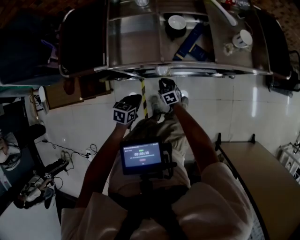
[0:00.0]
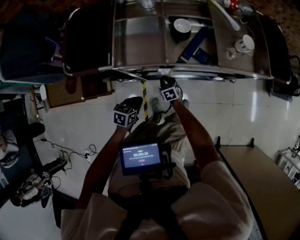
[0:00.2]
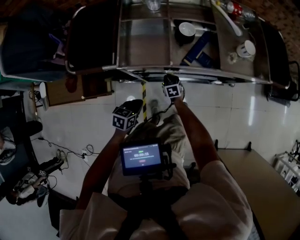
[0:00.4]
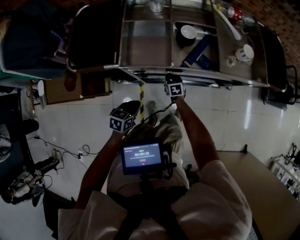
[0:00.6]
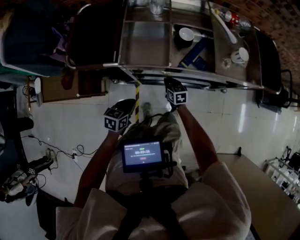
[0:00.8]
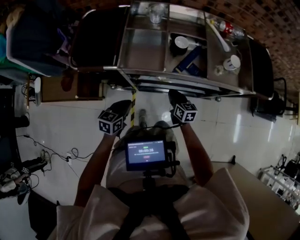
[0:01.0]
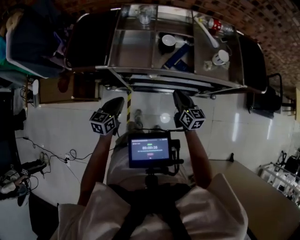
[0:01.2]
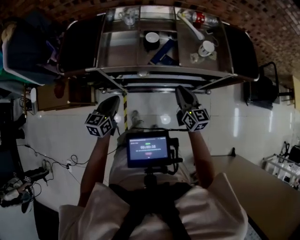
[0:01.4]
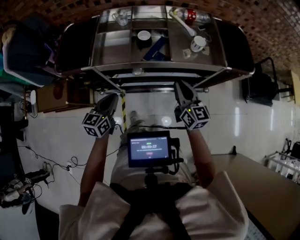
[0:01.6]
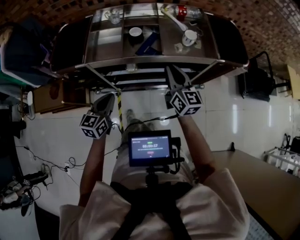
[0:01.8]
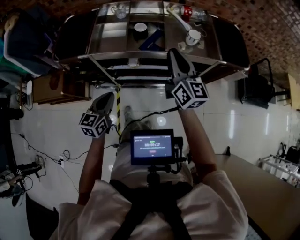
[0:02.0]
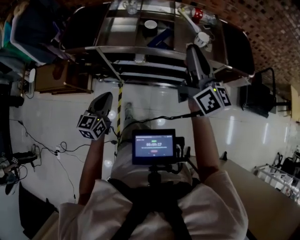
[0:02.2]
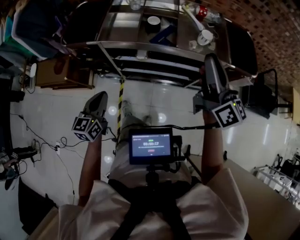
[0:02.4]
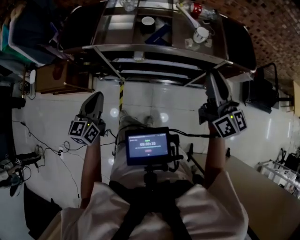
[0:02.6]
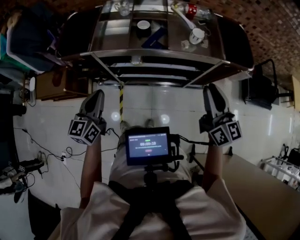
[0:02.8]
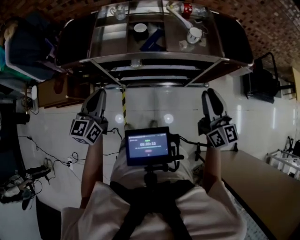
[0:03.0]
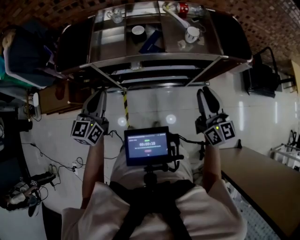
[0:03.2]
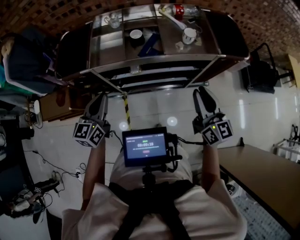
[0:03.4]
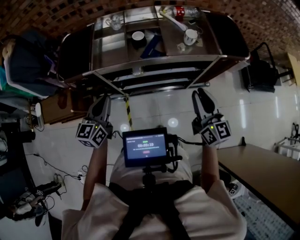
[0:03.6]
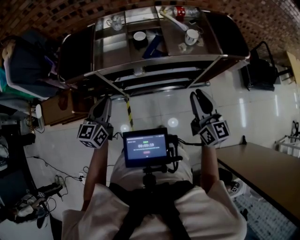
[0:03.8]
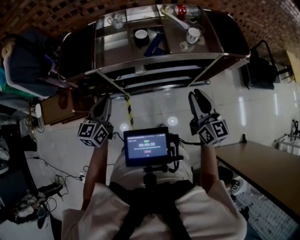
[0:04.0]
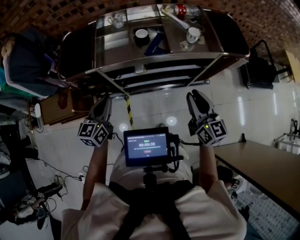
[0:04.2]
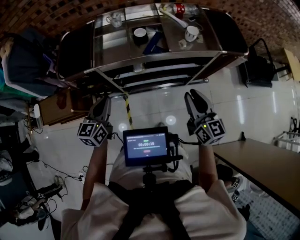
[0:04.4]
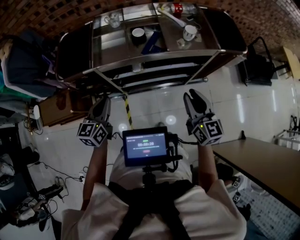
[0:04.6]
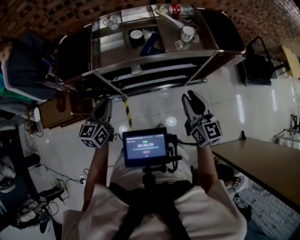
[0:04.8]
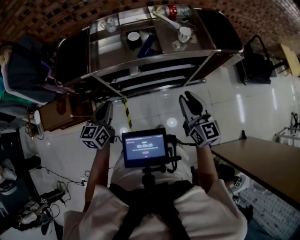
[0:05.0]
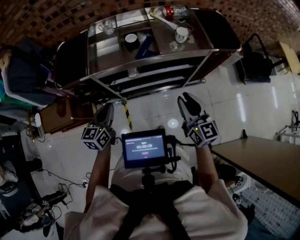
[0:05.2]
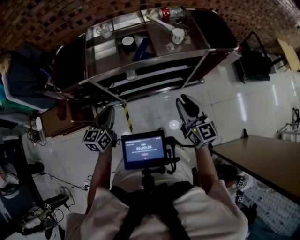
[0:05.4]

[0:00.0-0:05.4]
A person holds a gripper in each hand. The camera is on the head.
0:00.0 to 0:01.4: The left gripper is displaced upward by about 20 cm, and changes its angle by approximately 30 degrees. Meanwhile the right gripper travels upward and to the right by roughly 40 cm, and tips its fingers upward by some 40 degrees.
0:01.4 to 0:02.8: The left gripper goes approximately 15 cm upward and backward, while the right gripper heads upward, to the right and backward, covering about 25 cm.
0:02.8 to 0:04.0: The left gripper ends up approximately 5 cm from where it was; the right gripper travels to the left and downward by roughly 10 cm.
0:04.0 to 0:05.4: There are only small adjustments of the grippers.

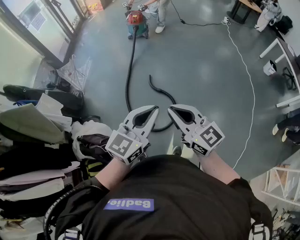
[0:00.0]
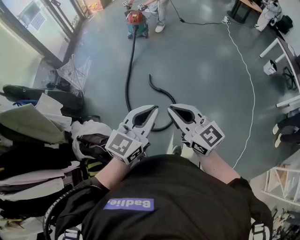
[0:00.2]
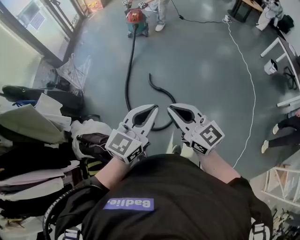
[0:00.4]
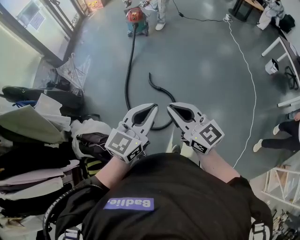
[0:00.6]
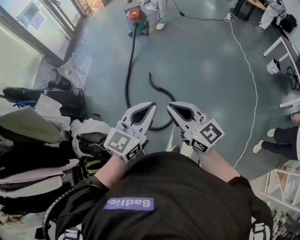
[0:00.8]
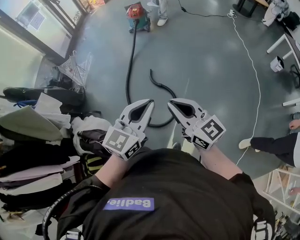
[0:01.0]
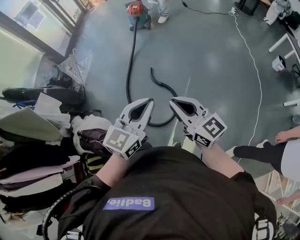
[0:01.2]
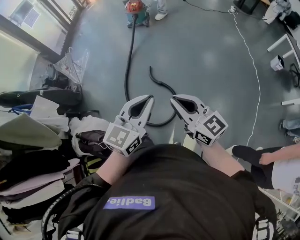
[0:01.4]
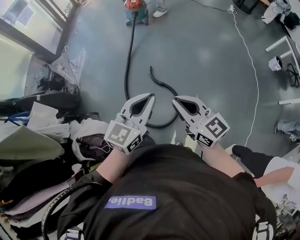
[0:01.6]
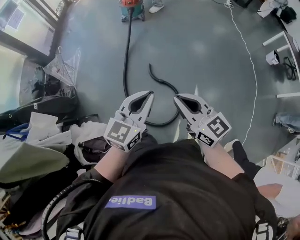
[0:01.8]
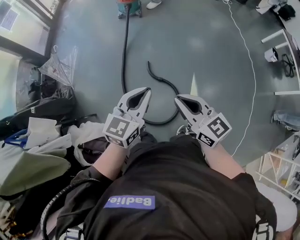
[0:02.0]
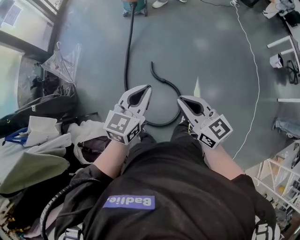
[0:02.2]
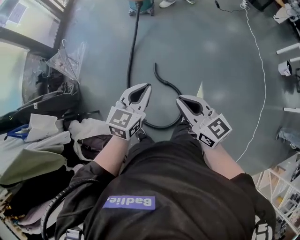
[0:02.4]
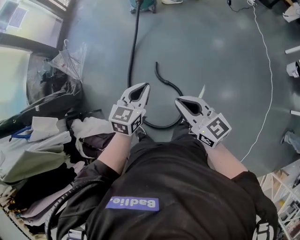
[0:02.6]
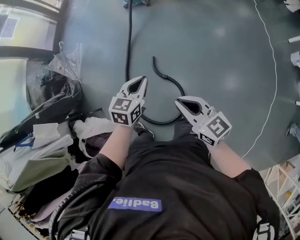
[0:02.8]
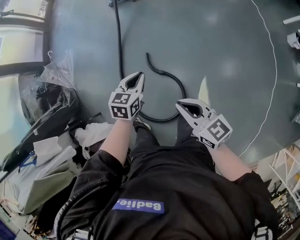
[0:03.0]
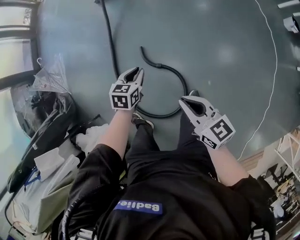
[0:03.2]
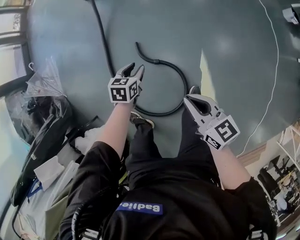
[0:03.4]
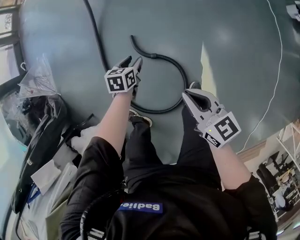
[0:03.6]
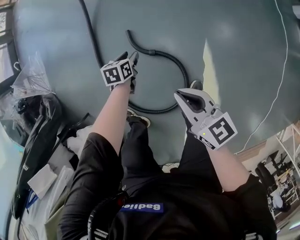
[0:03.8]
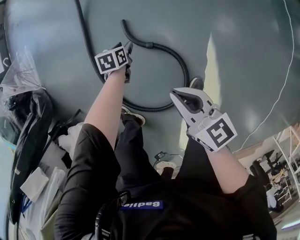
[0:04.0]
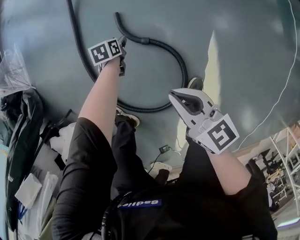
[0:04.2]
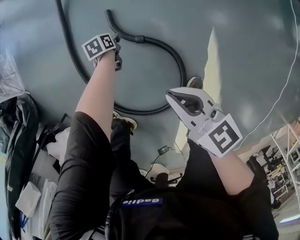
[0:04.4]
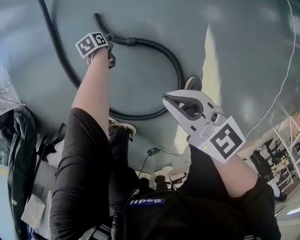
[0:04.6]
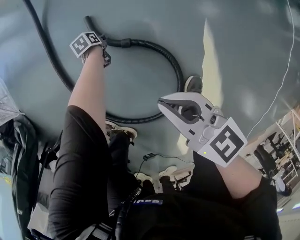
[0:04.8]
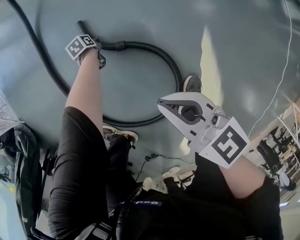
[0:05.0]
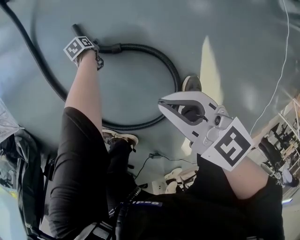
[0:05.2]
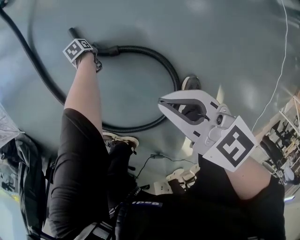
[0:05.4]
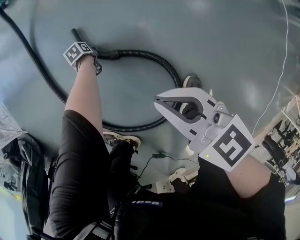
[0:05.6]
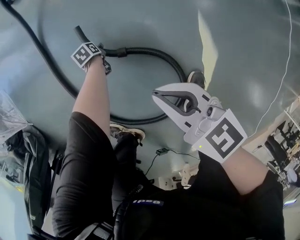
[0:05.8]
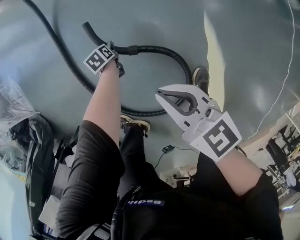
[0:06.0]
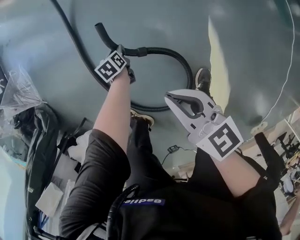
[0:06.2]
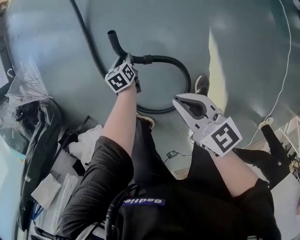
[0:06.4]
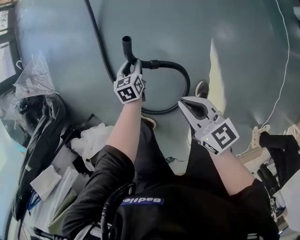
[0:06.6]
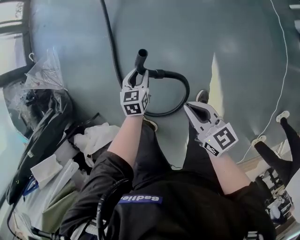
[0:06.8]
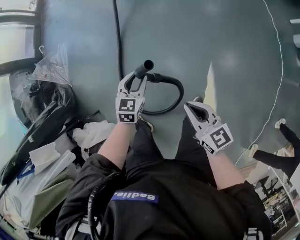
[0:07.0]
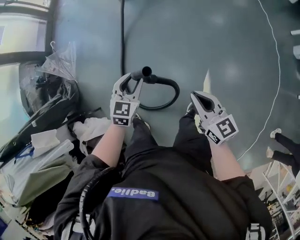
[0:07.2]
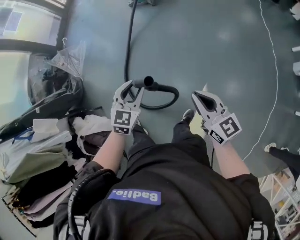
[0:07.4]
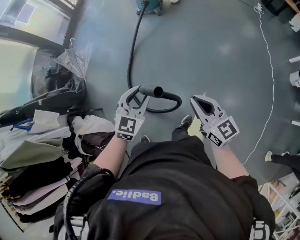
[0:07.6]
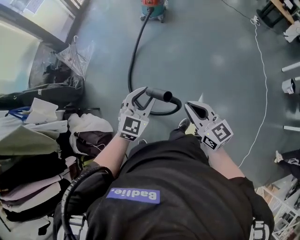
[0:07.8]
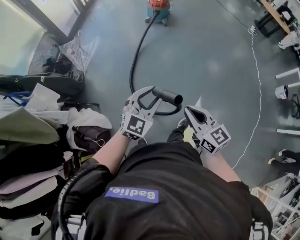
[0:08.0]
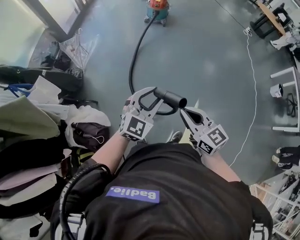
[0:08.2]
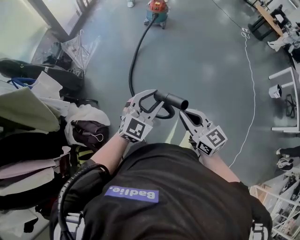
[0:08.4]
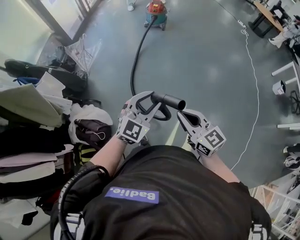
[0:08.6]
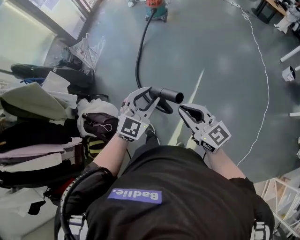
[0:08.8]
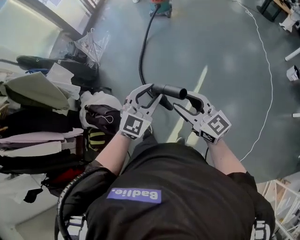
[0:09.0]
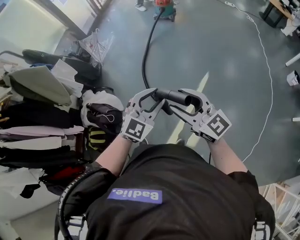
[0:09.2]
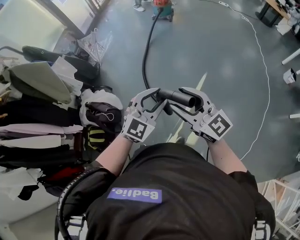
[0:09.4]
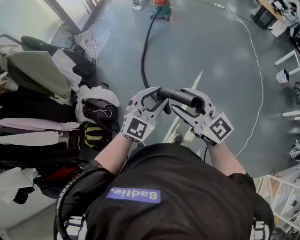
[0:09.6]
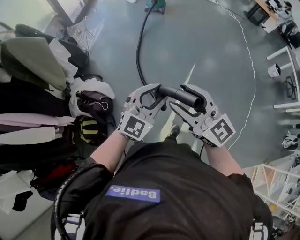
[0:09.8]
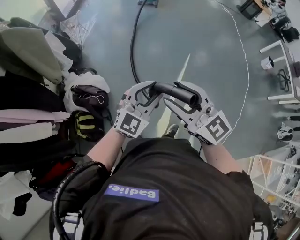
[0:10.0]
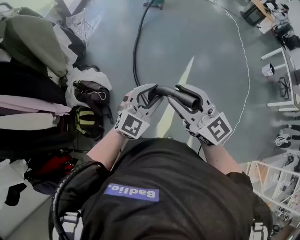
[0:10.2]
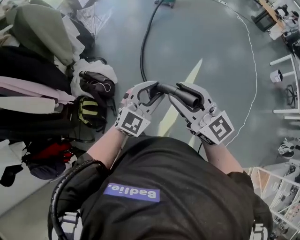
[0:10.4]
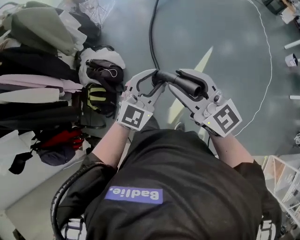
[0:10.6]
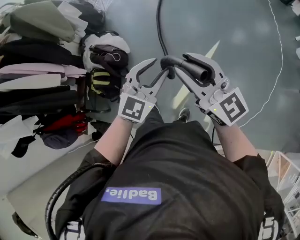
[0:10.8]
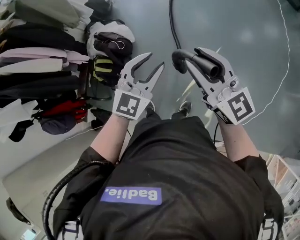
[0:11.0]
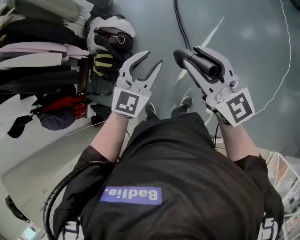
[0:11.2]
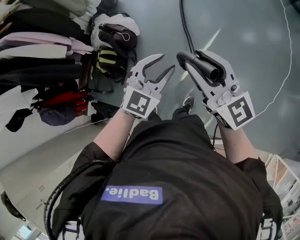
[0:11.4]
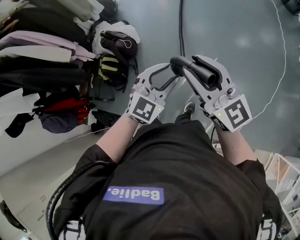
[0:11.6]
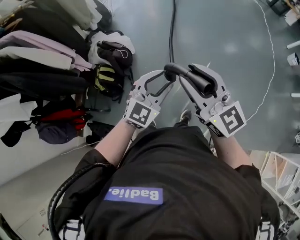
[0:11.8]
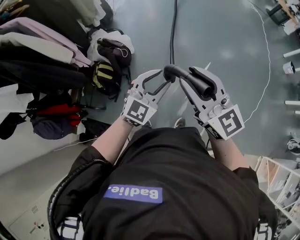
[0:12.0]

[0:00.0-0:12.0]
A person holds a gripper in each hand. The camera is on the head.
0:00.0 to 0:01.6: The two grippers go roughly 15 cm forward.
0:01.6 to 0:03.0: The right gripper moves forward, downward and to the right, about 30 cm. Meanwhile the left gripper shifts approximately 40 cm forward and downward, and tips its fingers downward by about 30 degrees.
0:03.0 to 0:04.4: The right gripper goes about 40 cm downward; the left gripper moves downward, approximately 70 cm, turns by about 40 degrees, and opens.
0:04.4 to 0:06.0: The left gripper travels downward and back again, roughly 15 cm each way.
0:06.0 to 0:07.6: The right gripper shifts approximately 50 cm upward, and swivels some 30 degrees. The left gripper is displaced upward by approximately 80 cm, and points its fingers roughly 40 degrees further upward.
0:07.6 to 0:09.0: The grippers both shift backward by approximately 40 cm. The right gripper opens up.
0:09.0 to 0:10.4: The left gripper is displaced backward and to the left by some 30 cm. Meanwhile the right gripper moves to the left and backward, roughly 35 cm.
0:10.4 to 0:12.0: The two grippers go approximately 20 cm backward.

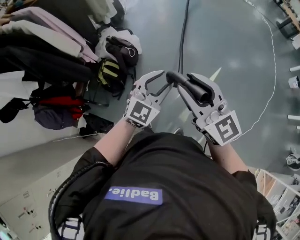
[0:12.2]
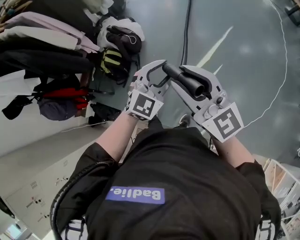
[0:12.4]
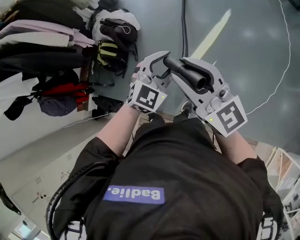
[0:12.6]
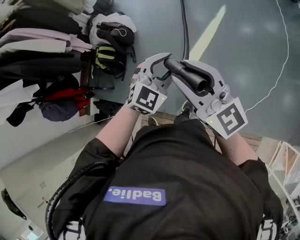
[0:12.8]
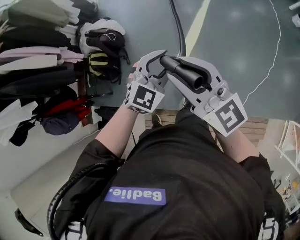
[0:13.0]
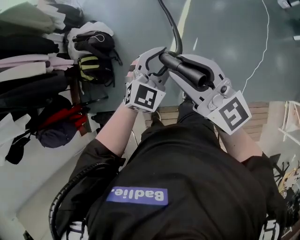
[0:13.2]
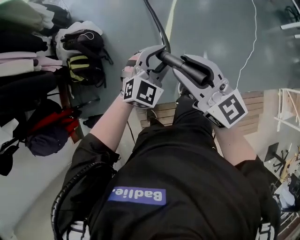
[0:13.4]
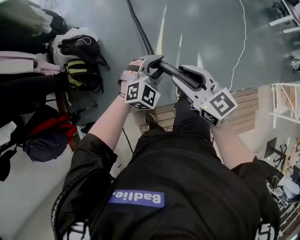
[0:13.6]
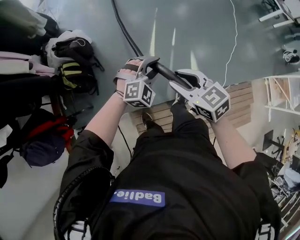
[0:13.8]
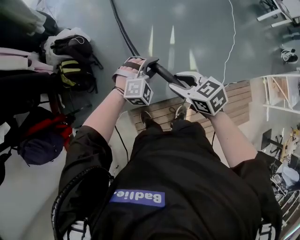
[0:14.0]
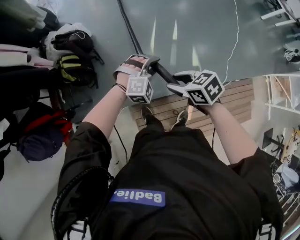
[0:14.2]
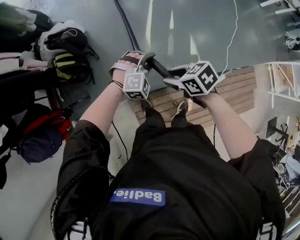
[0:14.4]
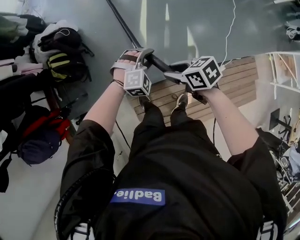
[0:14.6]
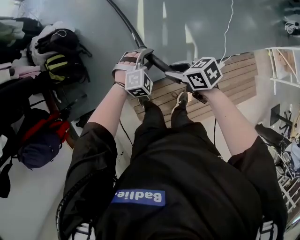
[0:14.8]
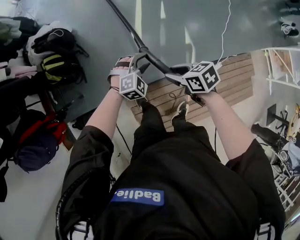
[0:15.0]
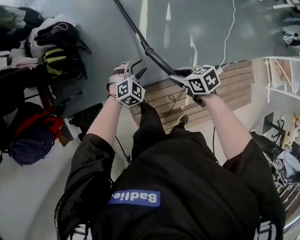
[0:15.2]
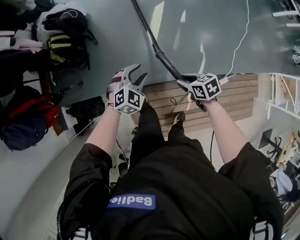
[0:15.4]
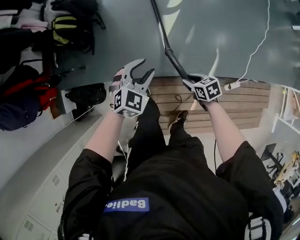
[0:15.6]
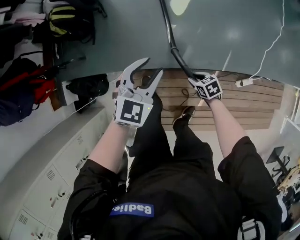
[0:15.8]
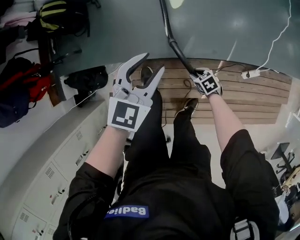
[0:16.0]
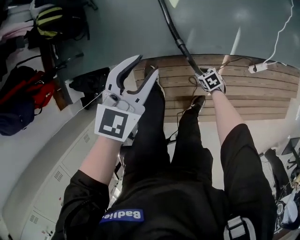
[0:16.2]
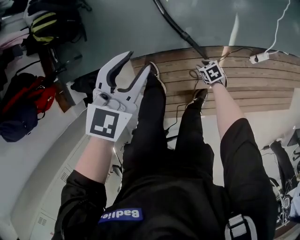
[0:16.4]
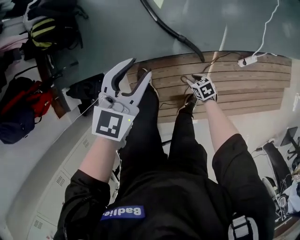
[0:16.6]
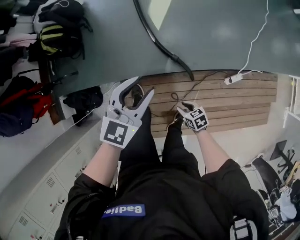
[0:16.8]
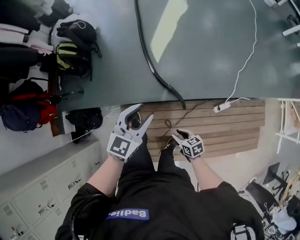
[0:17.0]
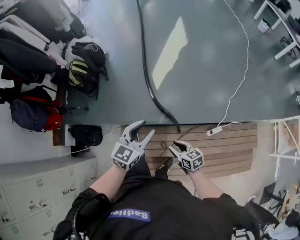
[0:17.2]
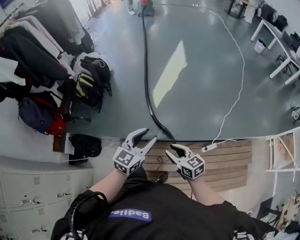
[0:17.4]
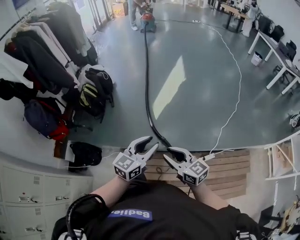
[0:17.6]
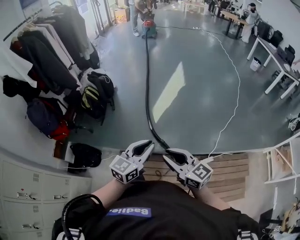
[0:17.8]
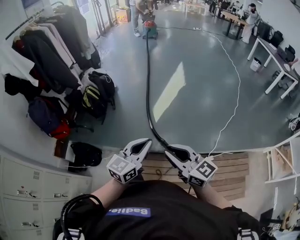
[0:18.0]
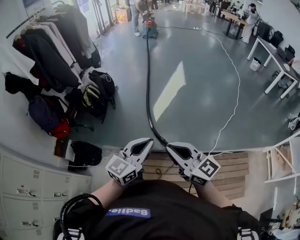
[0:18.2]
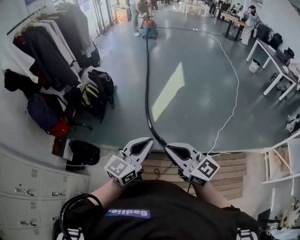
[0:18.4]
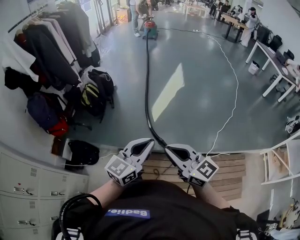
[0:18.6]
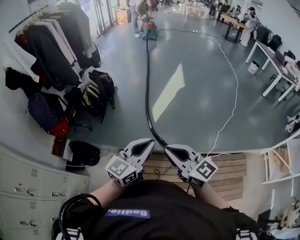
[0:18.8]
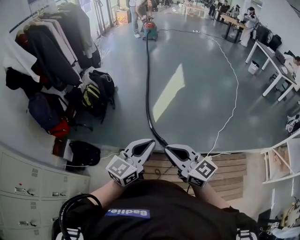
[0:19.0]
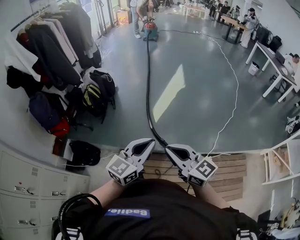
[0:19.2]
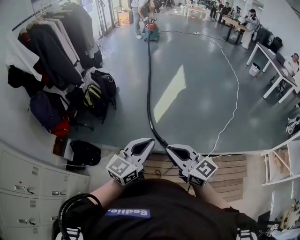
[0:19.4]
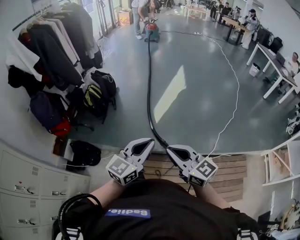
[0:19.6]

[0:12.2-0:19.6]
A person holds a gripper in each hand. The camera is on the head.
0:12.2 to 0:13.6: The right gripper shifts about 25 cm downward, and rotates some 30 degrees. Meanwhile the left gripper moves approximately 30 cm, and turns by about 40 degrees.
0:13.6 to 0:15.2: The grippers both shift downward and backward by about 25 cm. The right gripper angles its fingers downward, by some 30 degrees.
0:15.2 to 0:16.6: The right gripper goes approximately 50 cm downward and backward. The left gripper shifts about 15 cm backward and to the right, and rotates some 40 degrees.
0:16.6 to 0:18.2: The right gripper goes some 80 cm upward, tilts its fingers approximately 60 degrees upward, and closes its fingers; the left gripper travels upward and backward by some 40 cm, turns by approximately 30 degrees, and closes up.
0:18.2 to 0:19.6: There are only small adjustments of the grippers.
